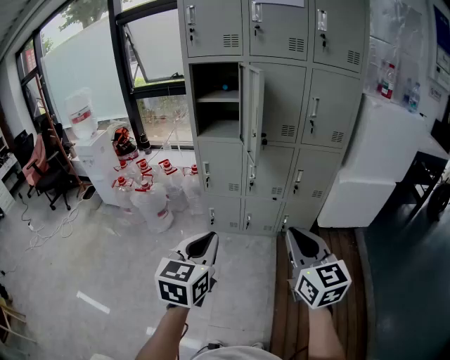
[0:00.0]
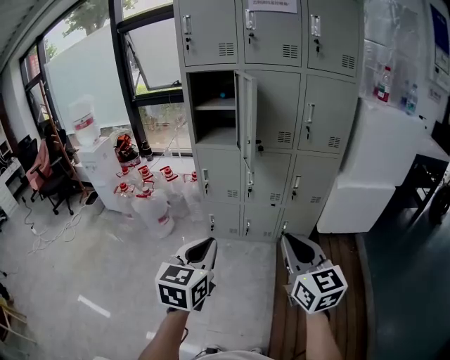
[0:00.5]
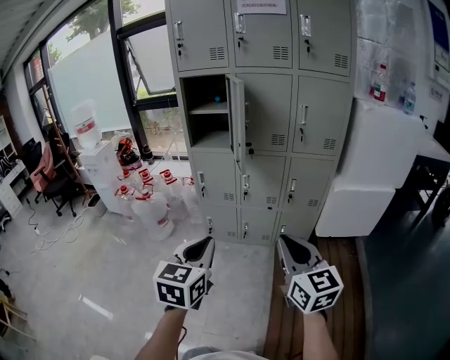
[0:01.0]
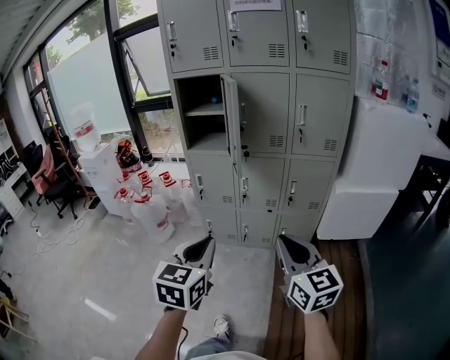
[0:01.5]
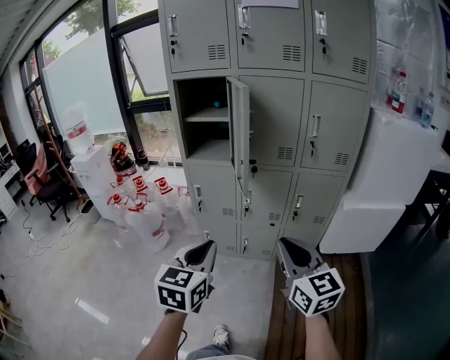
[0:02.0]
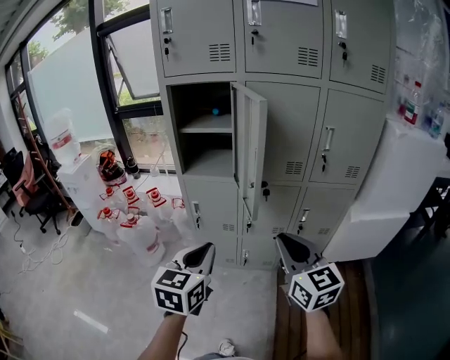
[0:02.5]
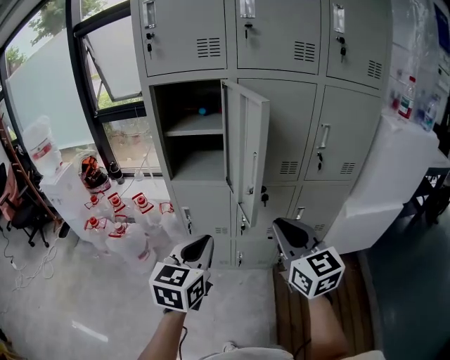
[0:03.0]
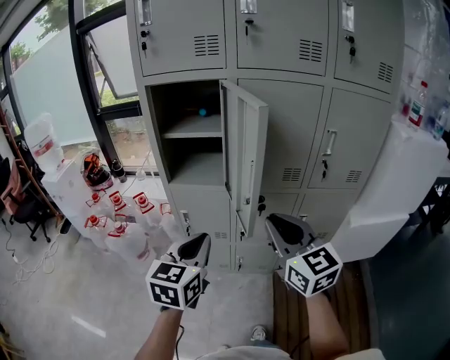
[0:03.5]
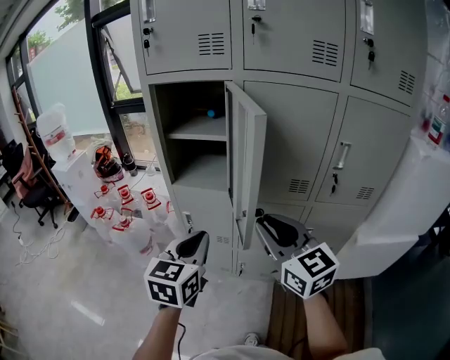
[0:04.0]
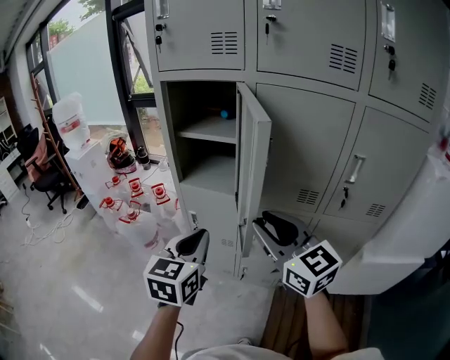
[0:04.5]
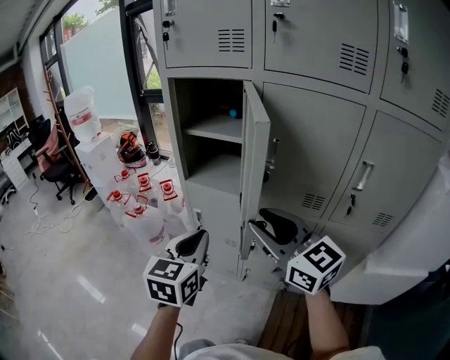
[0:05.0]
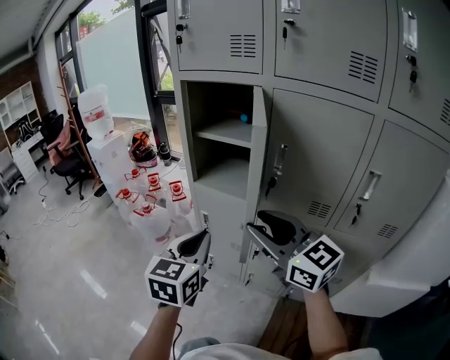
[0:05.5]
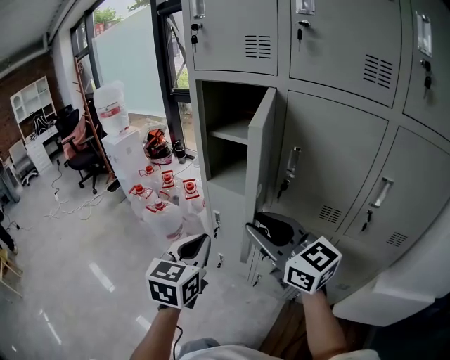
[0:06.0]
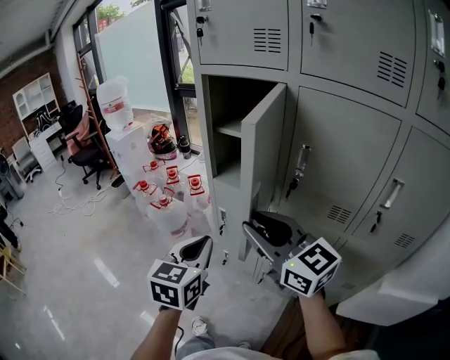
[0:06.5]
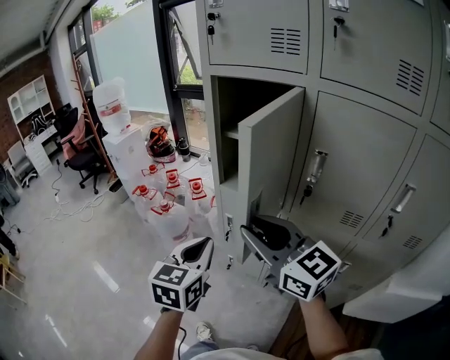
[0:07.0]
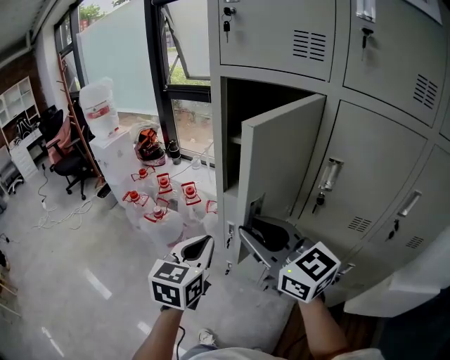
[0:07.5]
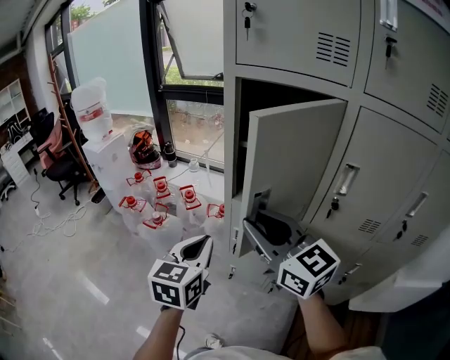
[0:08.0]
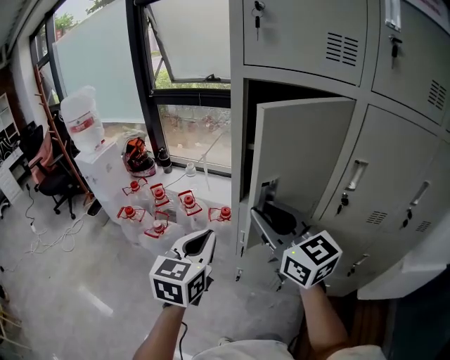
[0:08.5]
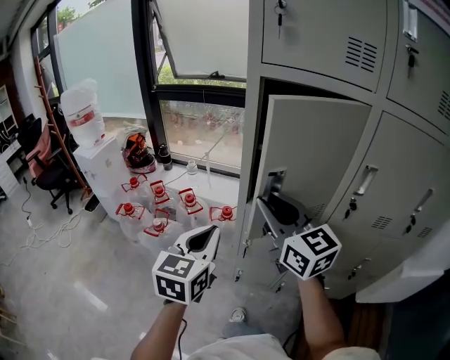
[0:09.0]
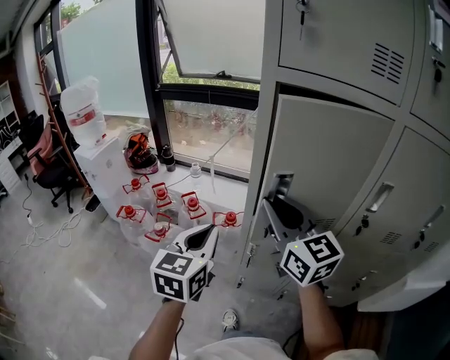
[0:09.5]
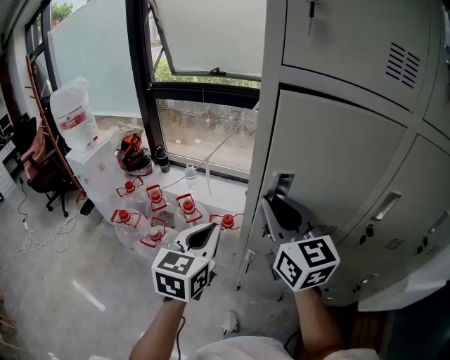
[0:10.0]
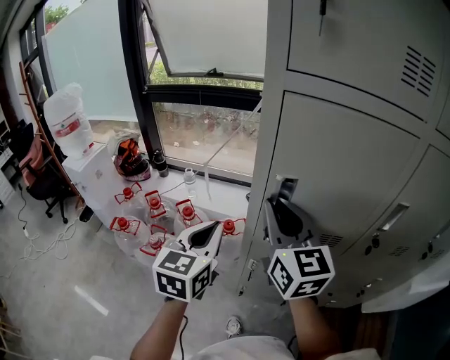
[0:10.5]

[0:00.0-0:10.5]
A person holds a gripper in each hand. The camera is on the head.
0:00.0 to 0:02.0: Both grippers travel together forward and to the right, roughly 15 cm.
0:02.0 to 0:04.0: The grippers both shift forward by roughly 30 cm.
0:04.0 to 0:06.5: The right gripper shifts by approximately 10 cm, and rotates roughly 30 degrees.
0:06.5 to 0:08.5: Both grippers move forward and to the left, some 25 cm. The right gripper swivels about 20 degrees.
0:08.5 to 0:10.5: The grippers both shift forward by approximately 15 cm. The right gripper swivels approximately 20 degrees.

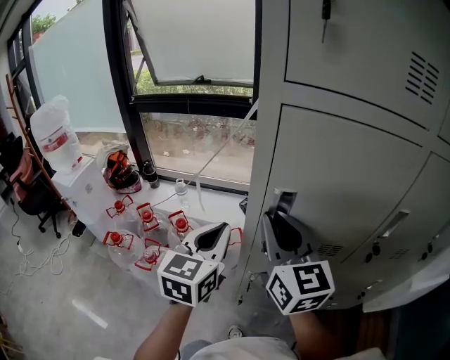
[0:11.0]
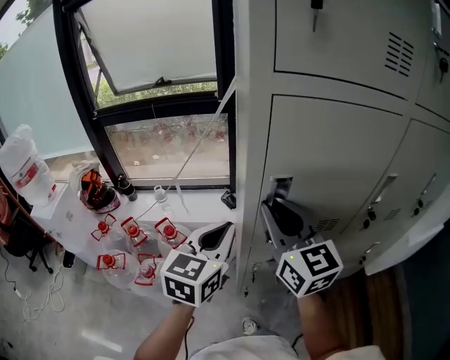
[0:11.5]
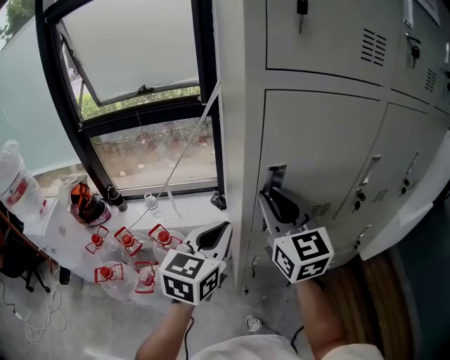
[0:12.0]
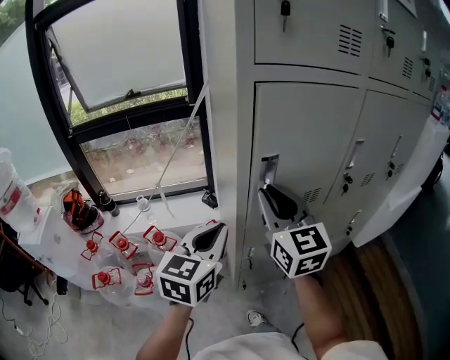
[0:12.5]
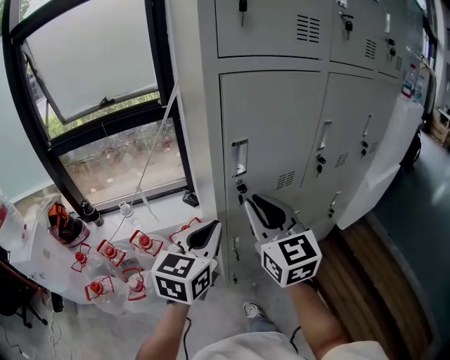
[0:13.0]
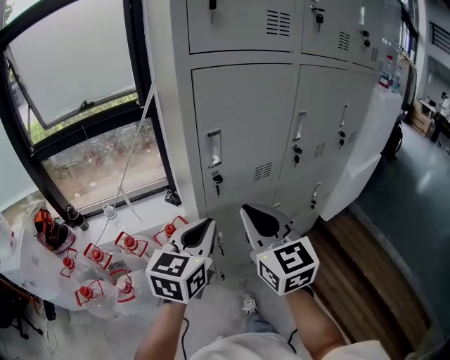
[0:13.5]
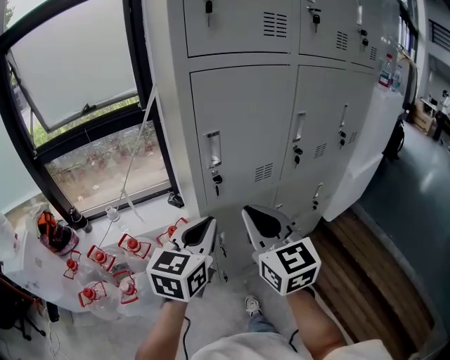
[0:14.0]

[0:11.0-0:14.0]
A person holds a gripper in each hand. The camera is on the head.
0:11.0 to 0:12.5: The left gripper goes roughly 5 cm backward, and swivels approximately 30 degrees, while the right gripper changes its angle by roughly 20 degrees.
0:12.5 to 0:14.0: The left gripper shifts some 5 cm to the right; the right gripper goes roughly 10 cm backward and to the right.

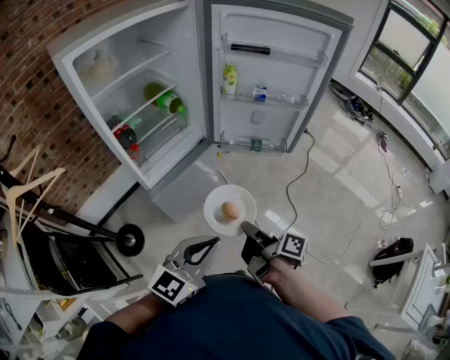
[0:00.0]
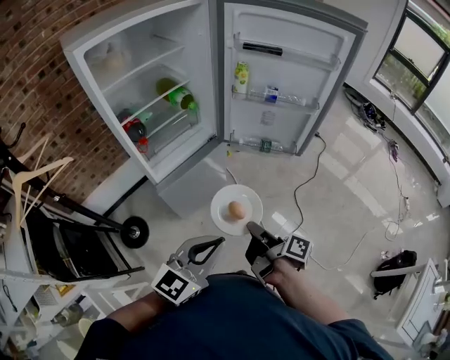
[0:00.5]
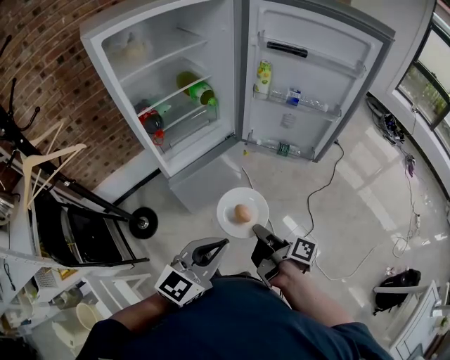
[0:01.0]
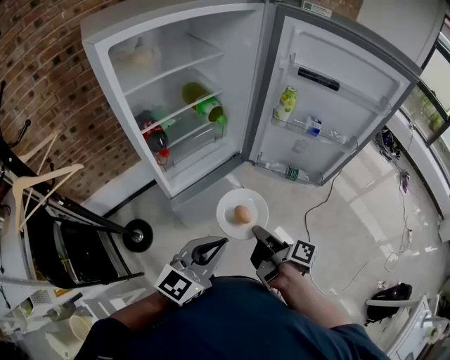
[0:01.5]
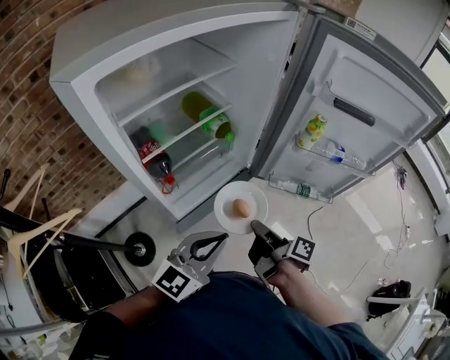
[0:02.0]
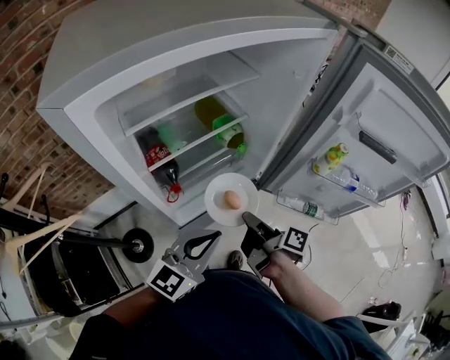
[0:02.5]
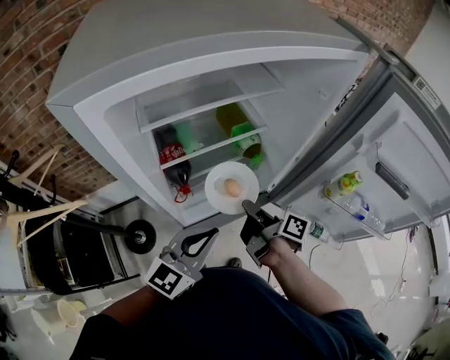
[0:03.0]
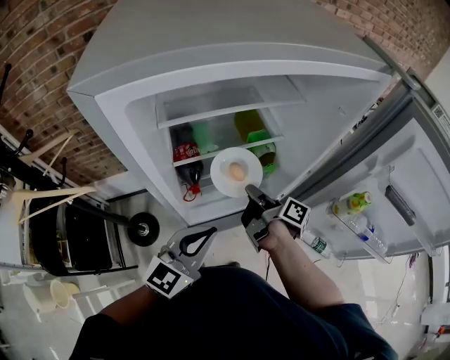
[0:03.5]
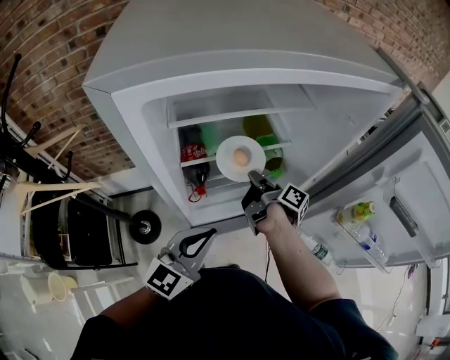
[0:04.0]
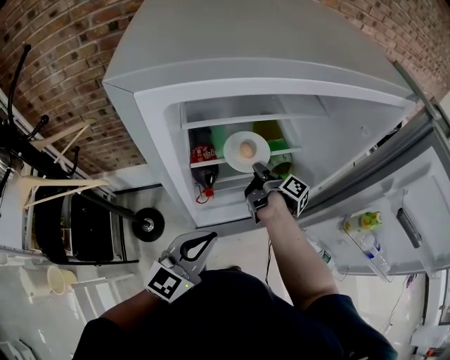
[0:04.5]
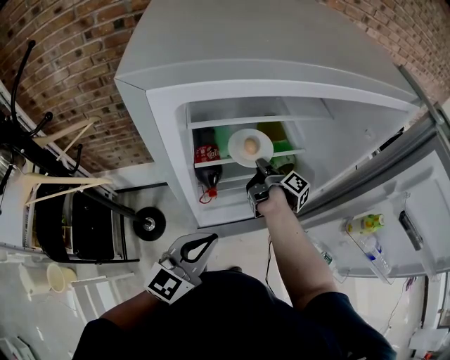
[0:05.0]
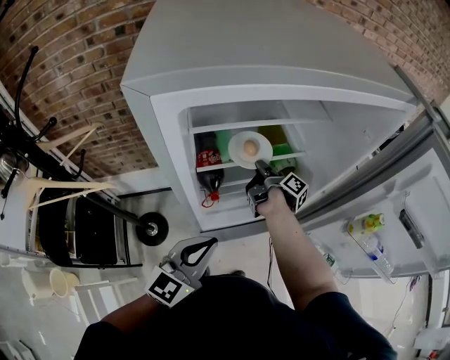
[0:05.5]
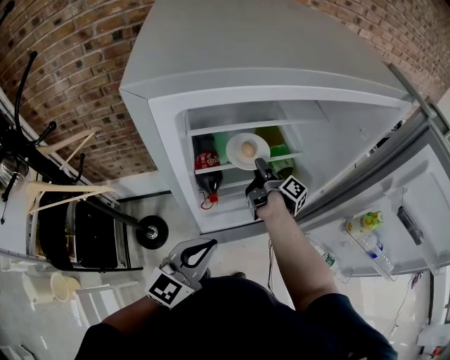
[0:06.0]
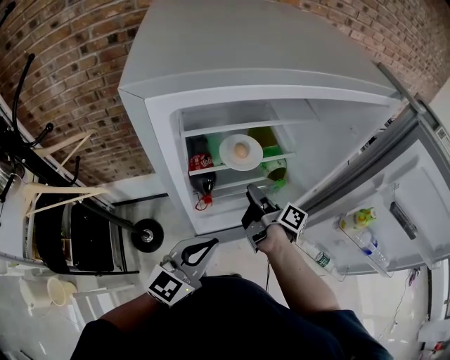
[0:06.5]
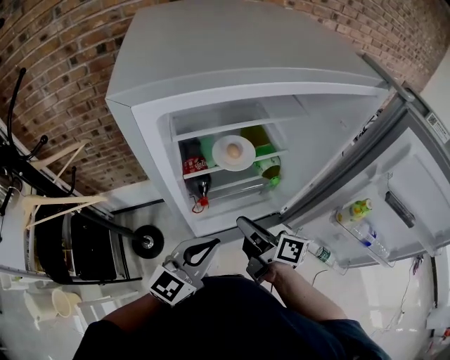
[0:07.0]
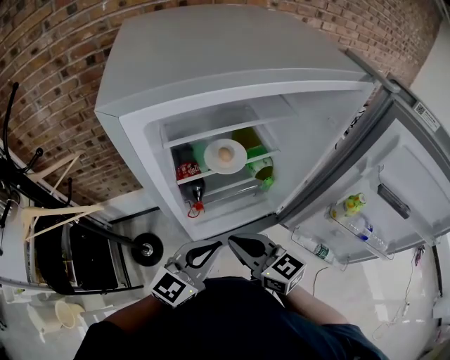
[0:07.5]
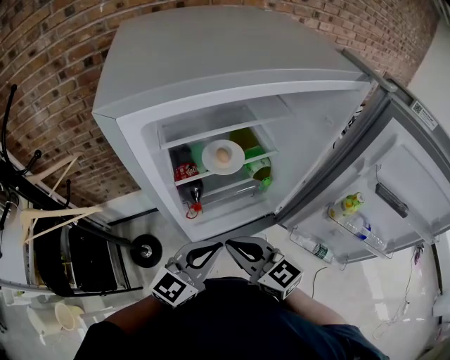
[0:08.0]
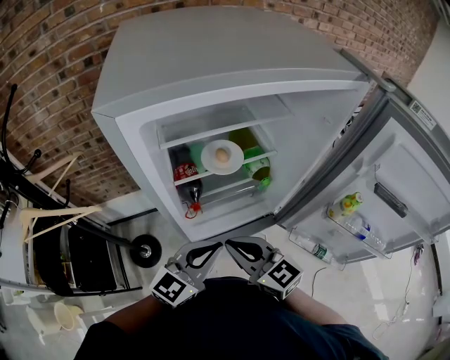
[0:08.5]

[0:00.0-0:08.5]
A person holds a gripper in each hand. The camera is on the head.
0:00.0 to 0:02.0: The left gripper ends up about 30 cm from where it was.
0:02.0 to 0:04.0: The left gripper ends up roughly 10 cm from where it was, and swivels about 30 degrees.

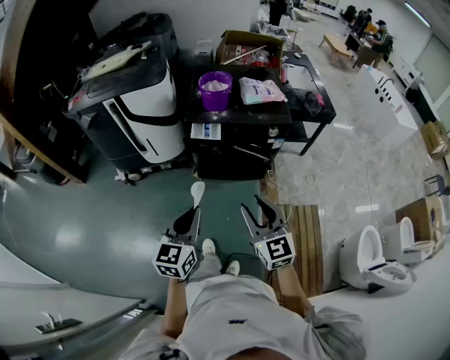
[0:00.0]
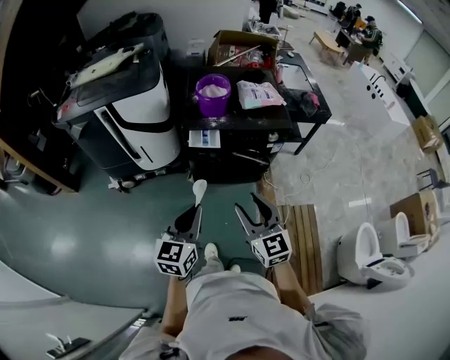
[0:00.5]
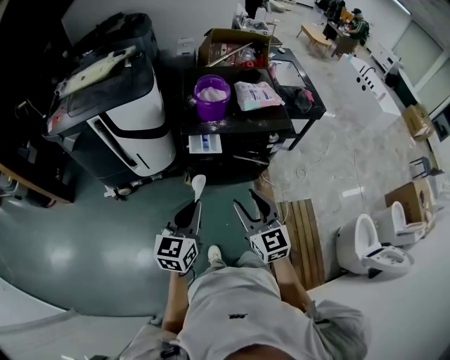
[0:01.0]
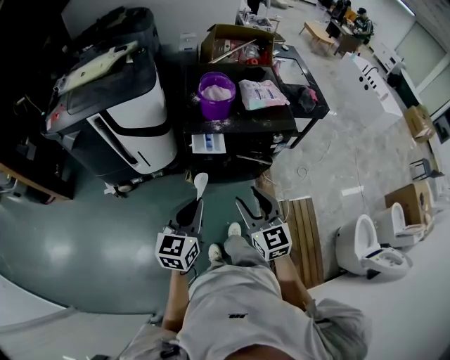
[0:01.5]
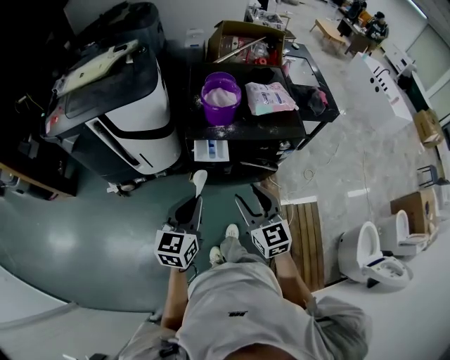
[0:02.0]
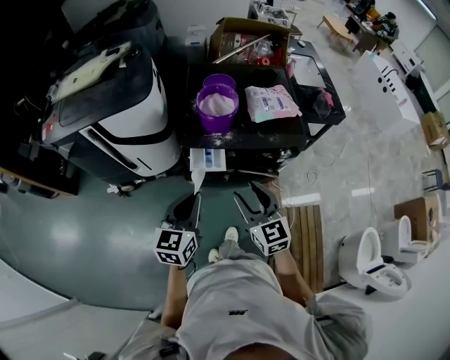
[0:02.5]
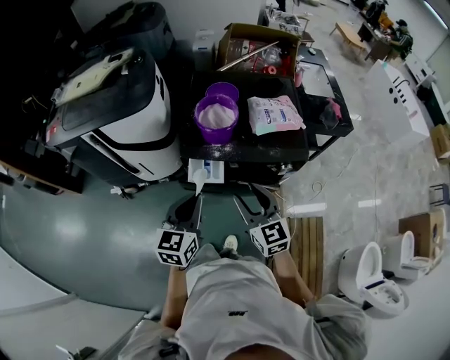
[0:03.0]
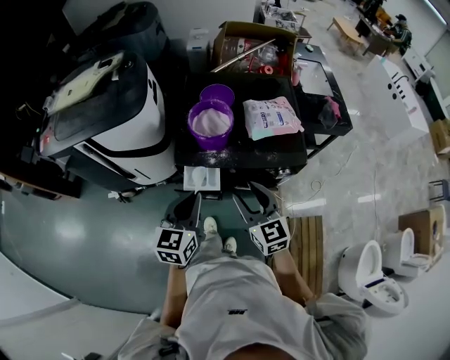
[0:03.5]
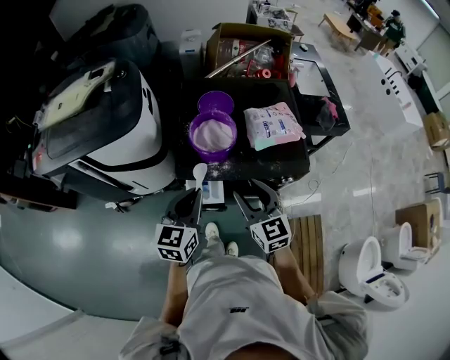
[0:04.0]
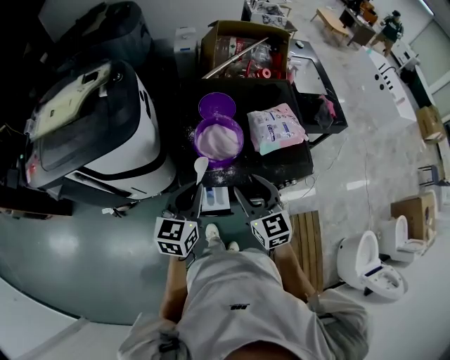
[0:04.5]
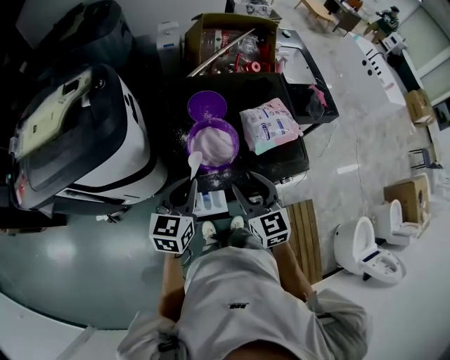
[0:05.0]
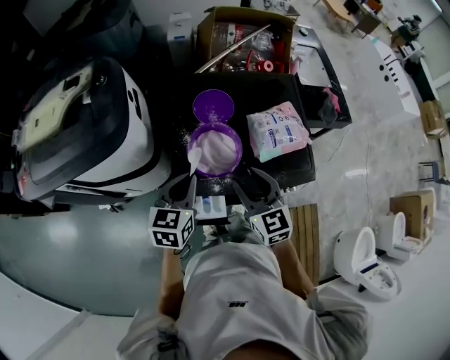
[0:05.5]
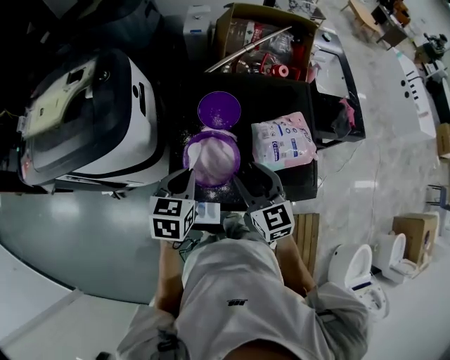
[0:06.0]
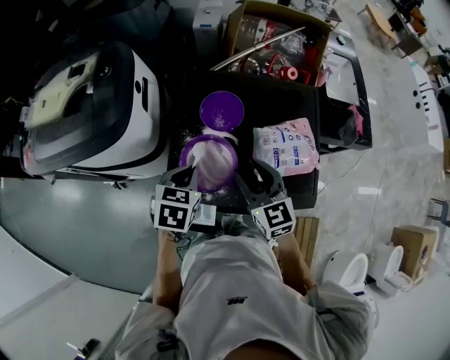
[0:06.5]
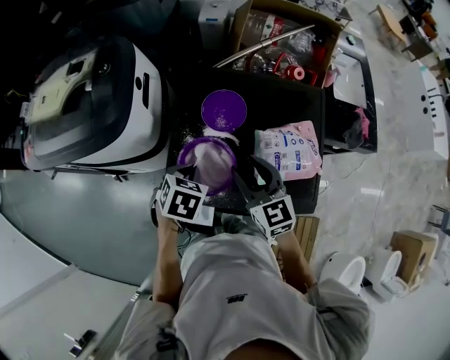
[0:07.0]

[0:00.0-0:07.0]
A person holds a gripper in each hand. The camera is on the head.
0:00.0 to 0:02.0: The right gripper travels forward and to the left by about 25 cm. The left gripper travels forward by some 20 cm.
0:02.0 to 0:03.5: Both grippers travel together forward and to the right, some 20 cm.
0:03.5 to 0:05.0: Both grippers move forward, some 15 cm.
0:05.0 to 0:07.0: The left gripper shifts about 15 cm forward, downward and to the right, and tilts its fingers about 40 degrees downward. The right gripper is displaced forward by approximately 15 cm, and rotates some 20 degrees.
